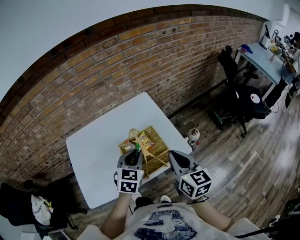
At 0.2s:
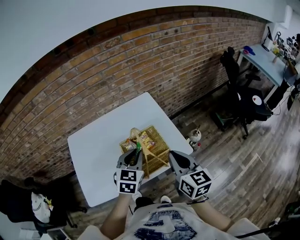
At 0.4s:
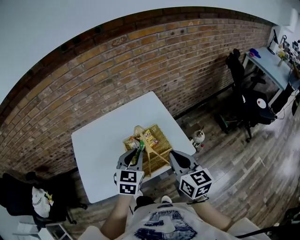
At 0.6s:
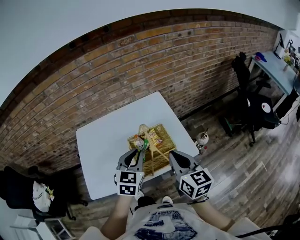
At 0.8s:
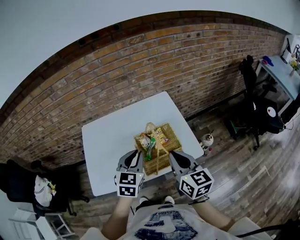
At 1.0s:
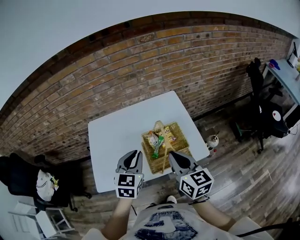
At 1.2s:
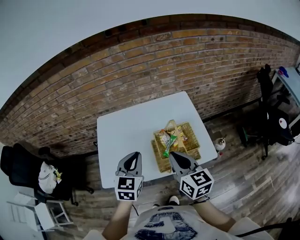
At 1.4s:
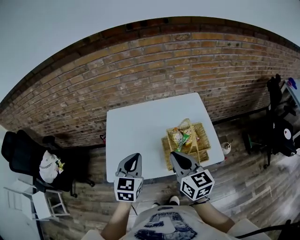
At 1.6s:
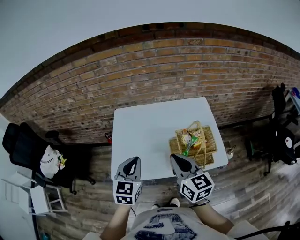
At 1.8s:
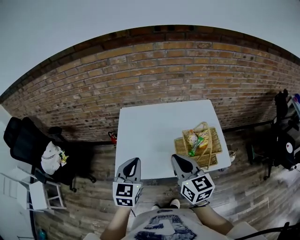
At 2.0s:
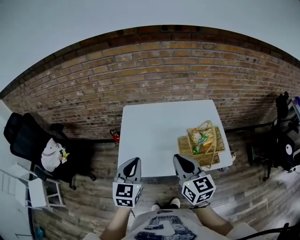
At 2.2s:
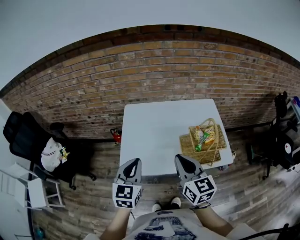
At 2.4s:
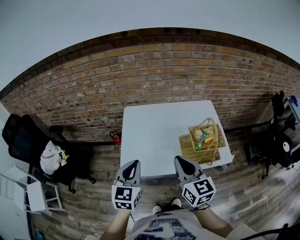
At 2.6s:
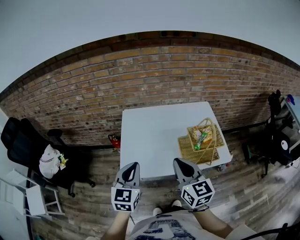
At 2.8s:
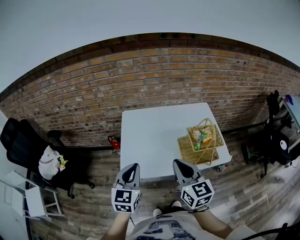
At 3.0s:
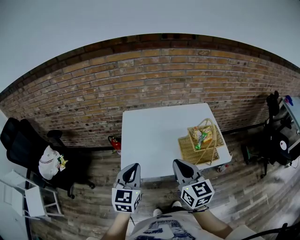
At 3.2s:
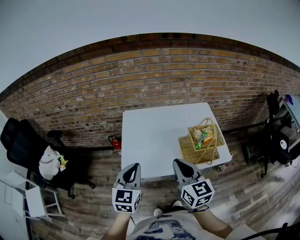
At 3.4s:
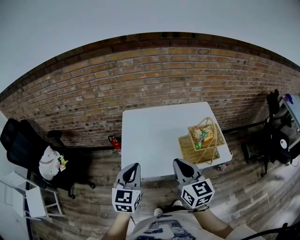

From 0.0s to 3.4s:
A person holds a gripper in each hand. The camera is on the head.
From 0.0s to 1.6s: The left gripper ends up approximately 30 cm from where it was, and swivels approximately 30 degrees; the right gripper shifts by some 25 cm, and rotates about 30 degrees.
From 1.6s to 3.4s: Both grippers move to the left and backward, approximately 10 cm.

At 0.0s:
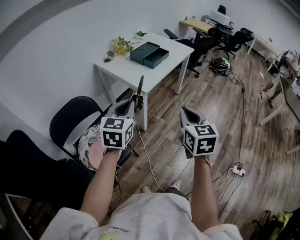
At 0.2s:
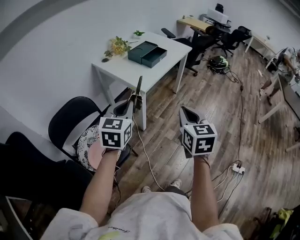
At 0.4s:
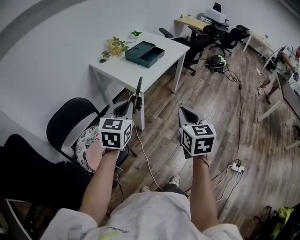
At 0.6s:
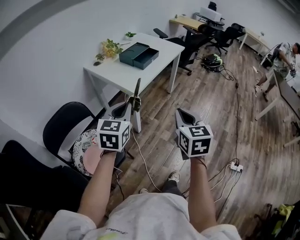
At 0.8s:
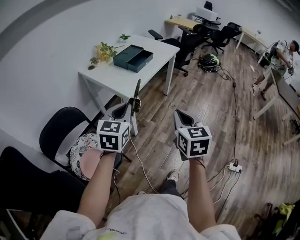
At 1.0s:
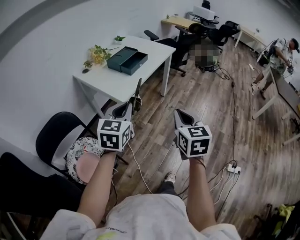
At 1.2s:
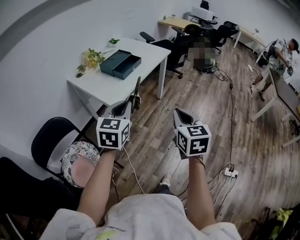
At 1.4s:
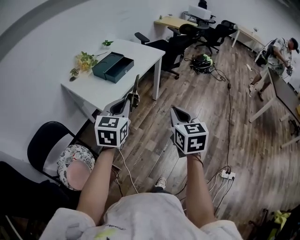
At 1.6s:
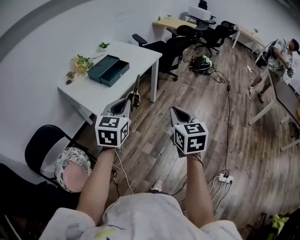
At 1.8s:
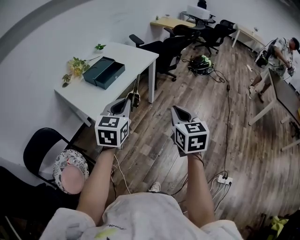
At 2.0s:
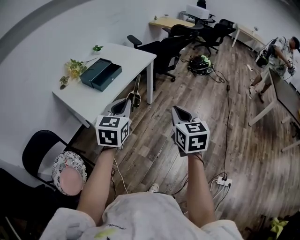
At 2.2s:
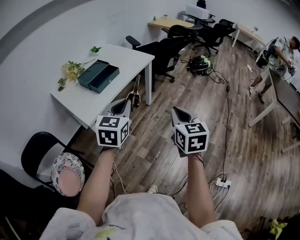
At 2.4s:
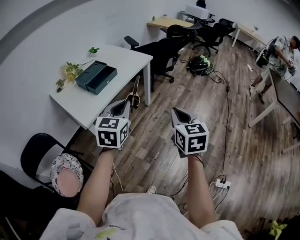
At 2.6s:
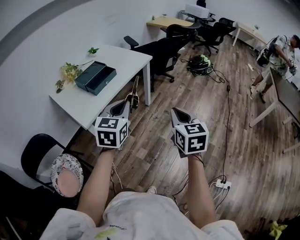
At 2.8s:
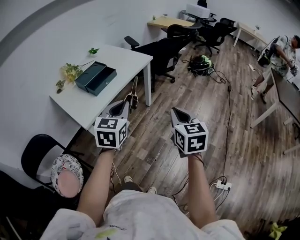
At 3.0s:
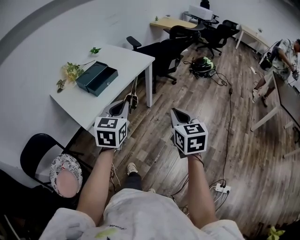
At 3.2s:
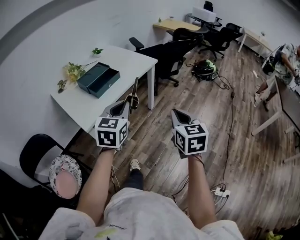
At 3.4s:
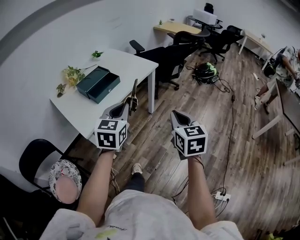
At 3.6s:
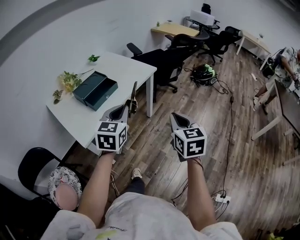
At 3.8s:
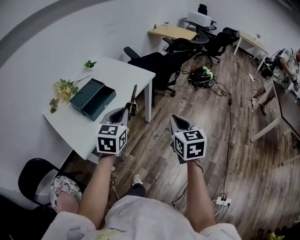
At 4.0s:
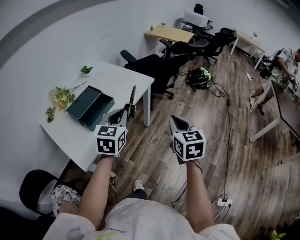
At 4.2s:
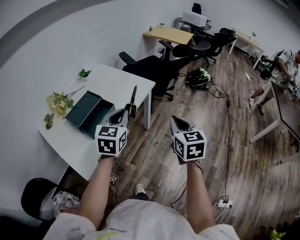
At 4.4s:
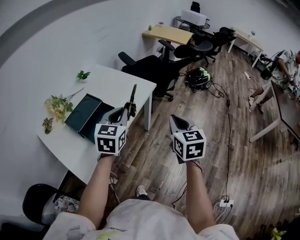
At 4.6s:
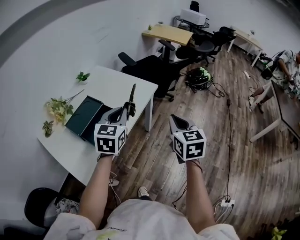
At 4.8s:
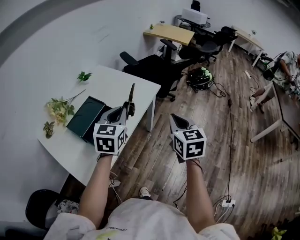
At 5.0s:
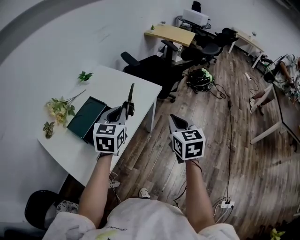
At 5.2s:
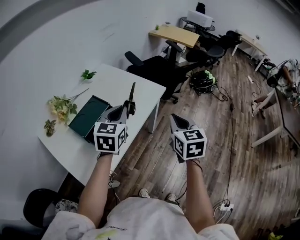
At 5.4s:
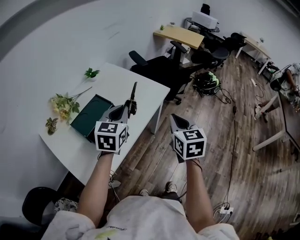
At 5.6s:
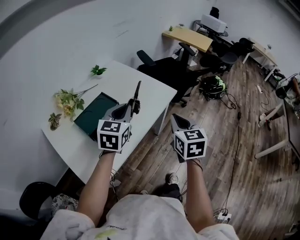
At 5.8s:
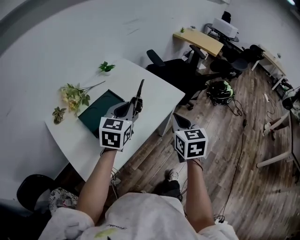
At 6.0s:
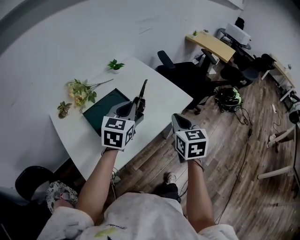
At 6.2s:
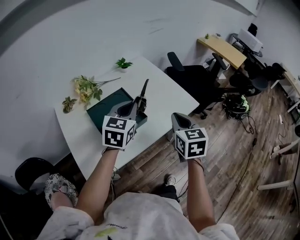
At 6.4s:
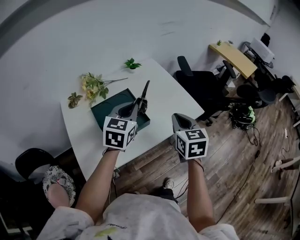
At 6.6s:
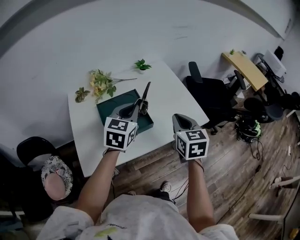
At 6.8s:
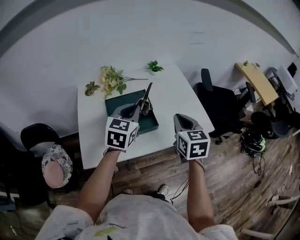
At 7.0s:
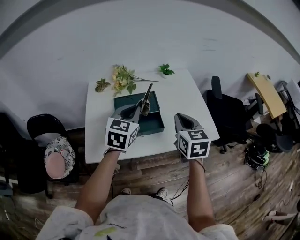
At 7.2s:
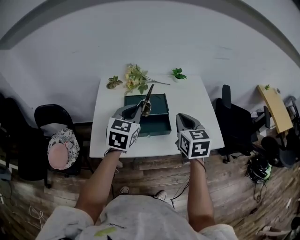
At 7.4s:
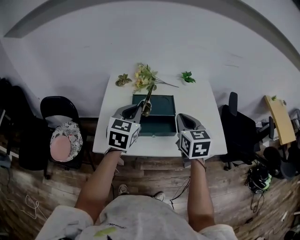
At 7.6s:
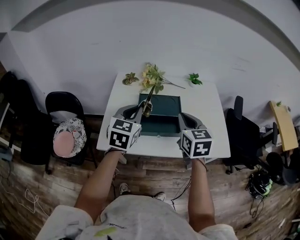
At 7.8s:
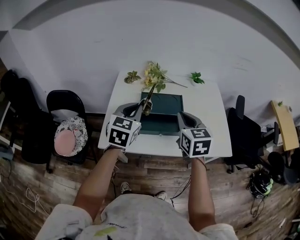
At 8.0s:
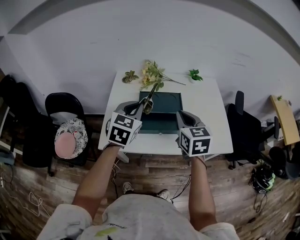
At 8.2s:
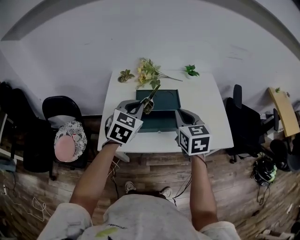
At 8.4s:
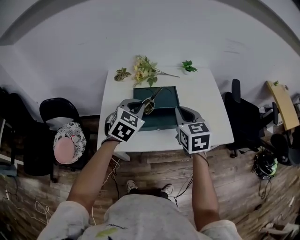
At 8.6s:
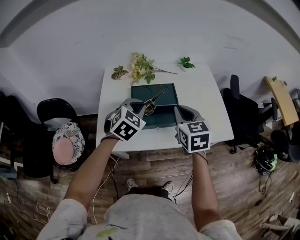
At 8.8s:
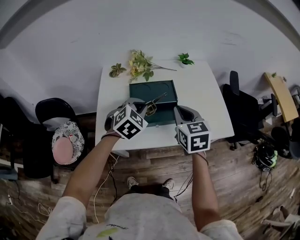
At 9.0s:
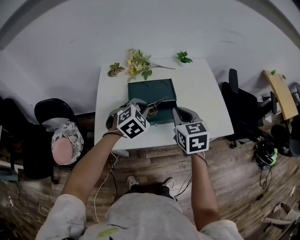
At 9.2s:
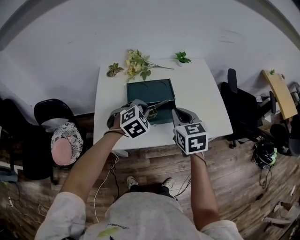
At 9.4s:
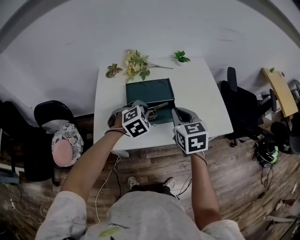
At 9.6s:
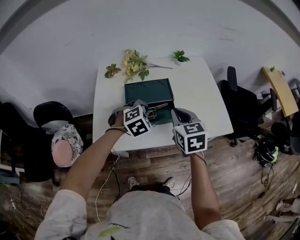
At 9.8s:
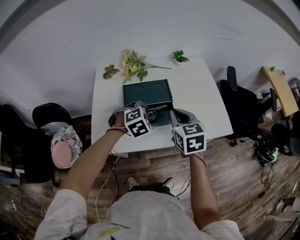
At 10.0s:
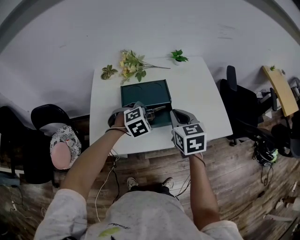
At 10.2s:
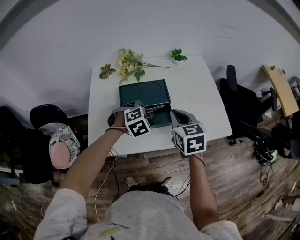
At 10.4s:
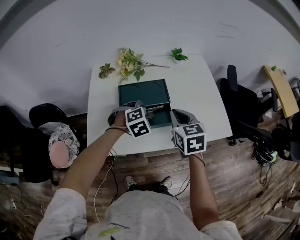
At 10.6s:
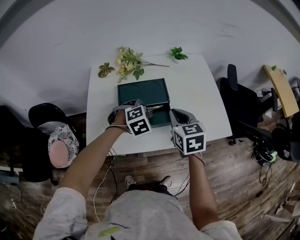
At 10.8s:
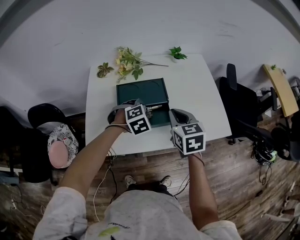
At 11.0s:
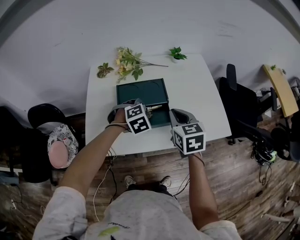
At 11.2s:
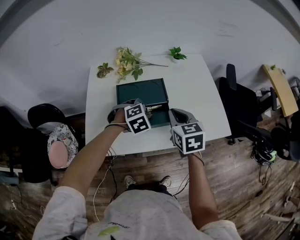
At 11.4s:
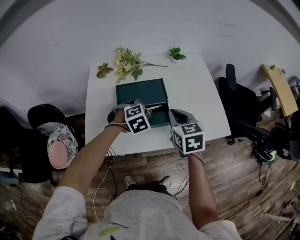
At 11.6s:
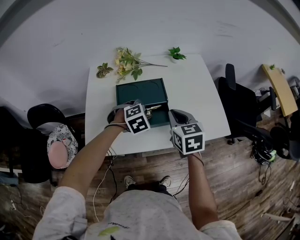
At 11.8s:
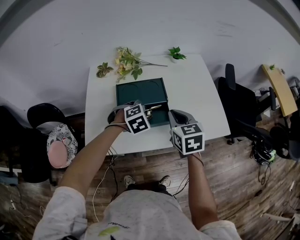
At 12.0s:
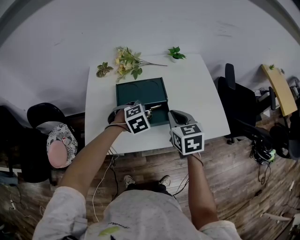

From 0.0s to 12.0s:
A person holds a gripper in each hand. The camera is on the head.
From 0.0s to 1.6s: Both grippers travel together to the right and forward, approximately 30 cm.
From 1.6s to 3.0s: Both grippers travel together to the right and forward, some 15 cm.
From 3.0s to 4.4s: Both grippers travel together forward, roughly 25 cm.
From 4.4s to 6.0s: The left gripper travels to the left and forward by some 15 cm; the right gripper shifts about 20 cm forward and to the left.
From 6.0s to 7.6s: The right gripper shifts by some 15 cm, and changes its angle by roughly 50 degrees; the left gripper moves roughly 15 cm, and rotates roughly 50 degrees.
From 7.6s to 9.0s: The left gripper goes approximately 10 cm downward and to the right, and changes its angle by approximately 50 degrees.
From 9.0s to 10.4s: The right gripper changes place by roughly 5 cm, while the left gripper heads downward, covering about 5 cm.
From 10.4s to 12.0s: There are only small adjustments of the grippers.

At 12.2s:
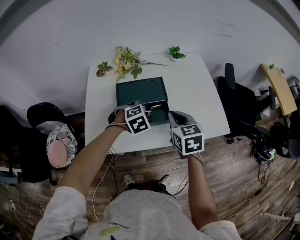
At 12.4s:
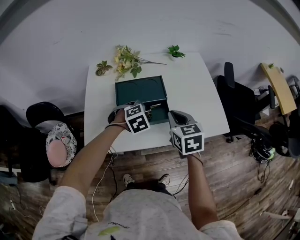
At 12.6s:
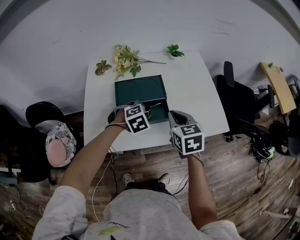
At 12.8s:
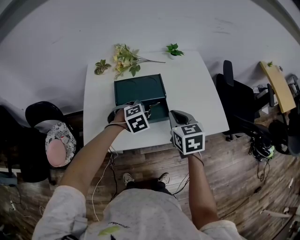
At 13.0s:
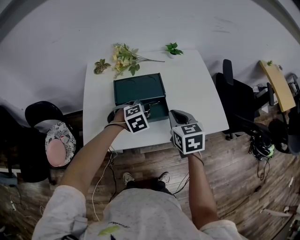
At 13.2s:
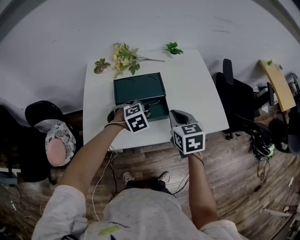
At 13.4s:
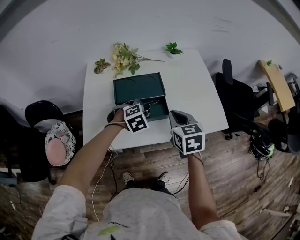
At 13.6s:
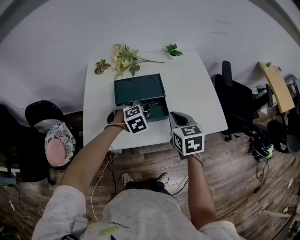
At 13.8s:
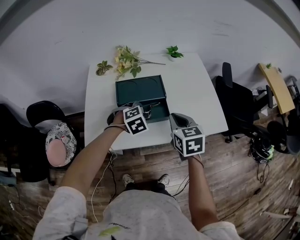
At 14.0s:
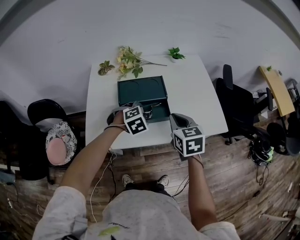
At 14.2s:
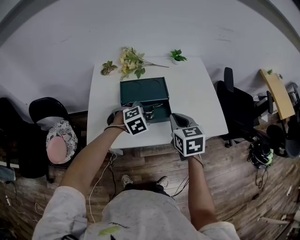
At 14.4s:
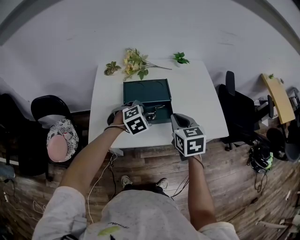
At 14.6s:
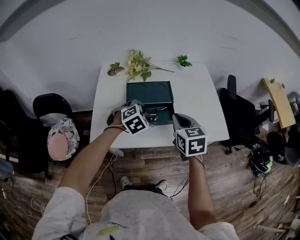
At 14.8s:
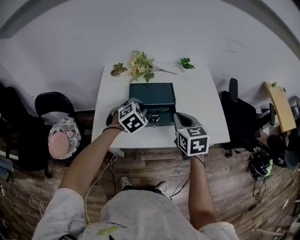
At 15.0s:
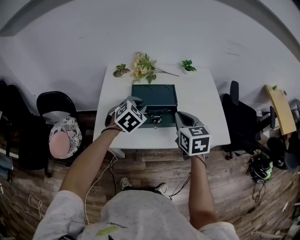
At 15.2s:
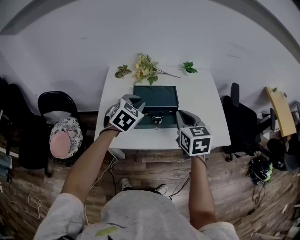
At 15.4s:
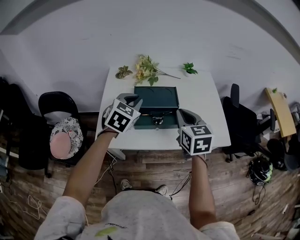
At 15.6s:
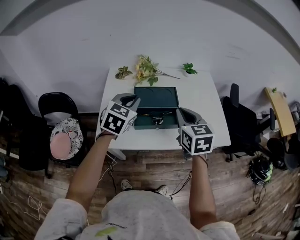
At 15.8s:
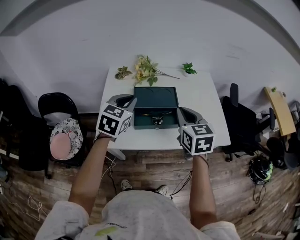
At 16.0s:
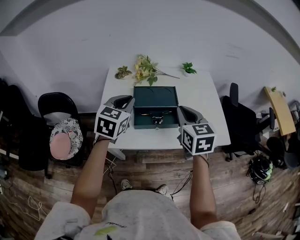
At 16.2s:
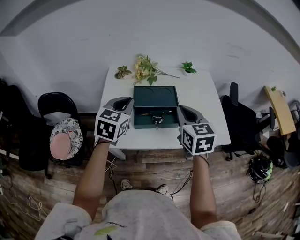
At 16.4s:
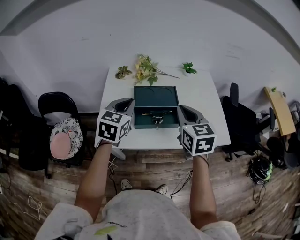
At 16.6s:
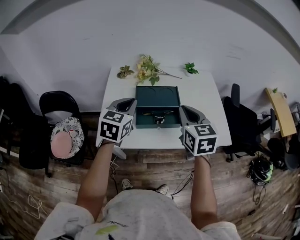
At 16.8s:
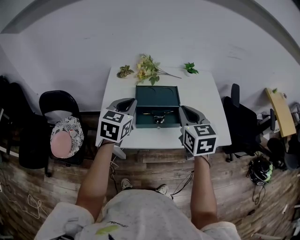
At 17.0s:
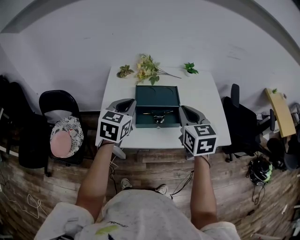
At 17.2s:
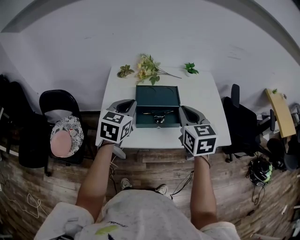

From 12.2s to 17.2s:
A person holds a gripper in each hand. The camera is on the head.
From 12.2s to 13.8s: There are only small adjustments of the grippers.
From 13.8s to 15.6s: The left gripper shifts some 20 cm upward and to the left, and angles its fingers upward, by roughly 30 degrees; the right gripper moves upward, some 10 cm.
From 15.6s to 17.2s: The grippers stay close to where they were, moving slightly.

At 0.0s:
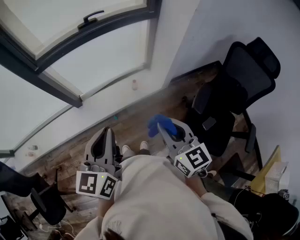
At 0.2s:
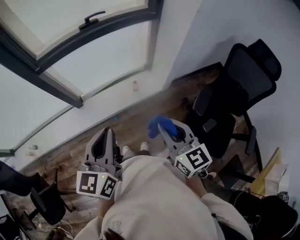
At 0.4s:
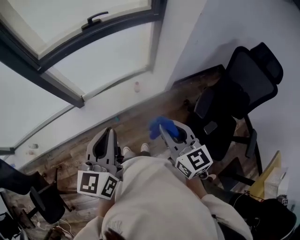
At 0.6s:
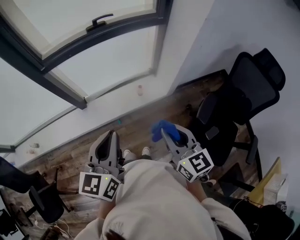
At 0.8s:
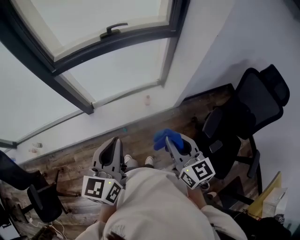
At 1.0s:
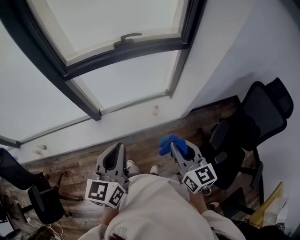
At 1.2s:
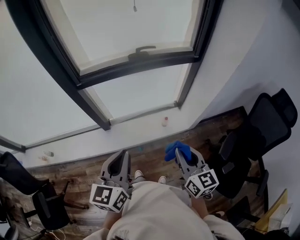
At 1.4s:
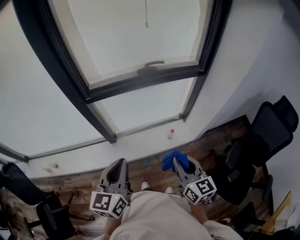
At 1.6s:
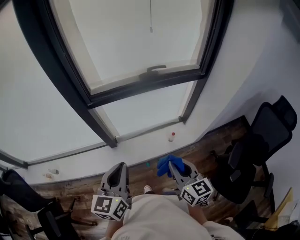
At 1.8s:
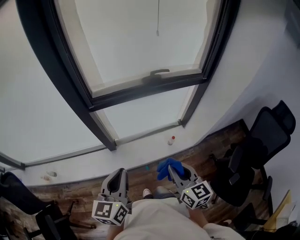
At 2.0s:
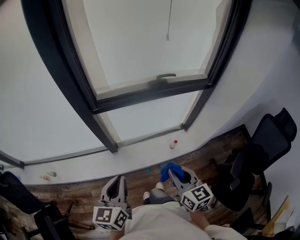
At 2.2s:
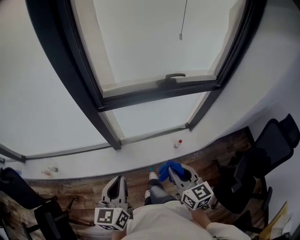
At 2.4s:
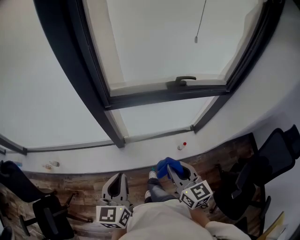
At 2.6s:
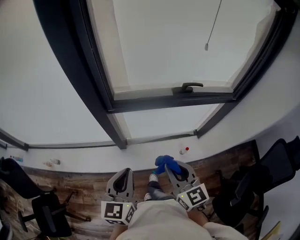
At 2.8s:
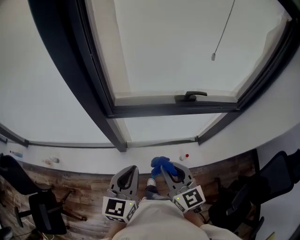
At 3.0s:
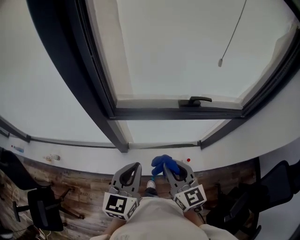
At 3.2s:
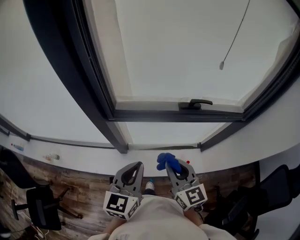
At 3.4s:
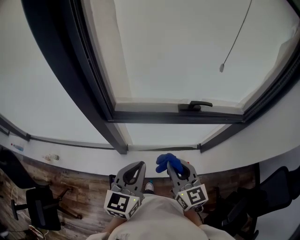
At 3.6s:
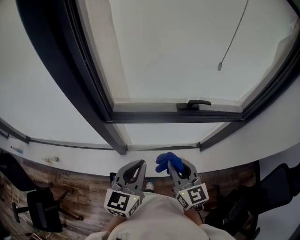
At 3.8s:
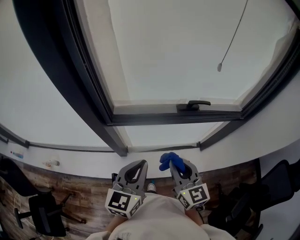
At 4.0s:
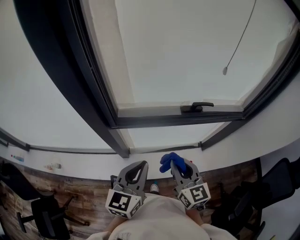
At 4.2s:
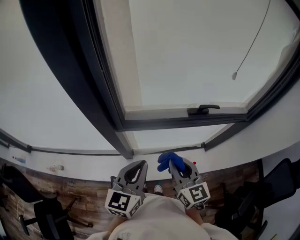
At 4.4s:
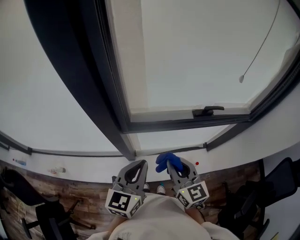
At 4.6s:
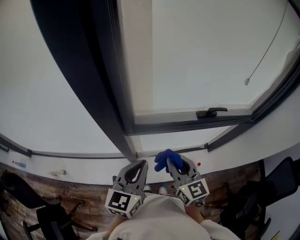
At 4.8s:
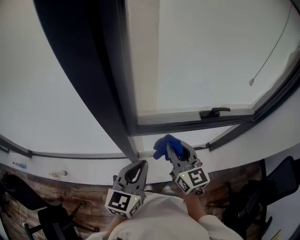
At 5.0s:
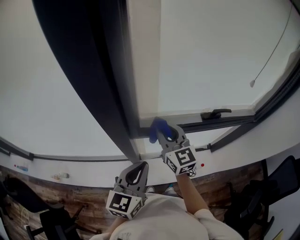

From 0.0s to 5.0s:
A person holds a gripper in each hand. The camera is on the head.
From 0.0s to 1.6s: Both grippers move to the left and forward, approximately 20 cm.
From 1.6s to 3.4s: The two grippers go about 25 cm forward.
From 3.4s to 5.0s: The left gripper goes roughly 15 cm to the left and forward. The right gripper is displaced forward and to the left by some 25 cm.
